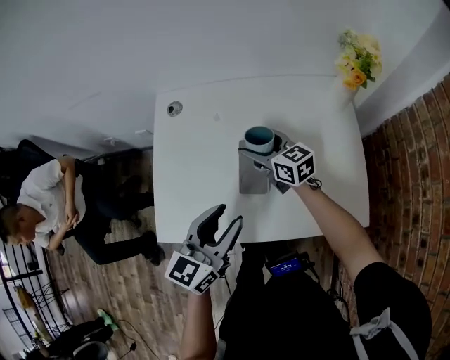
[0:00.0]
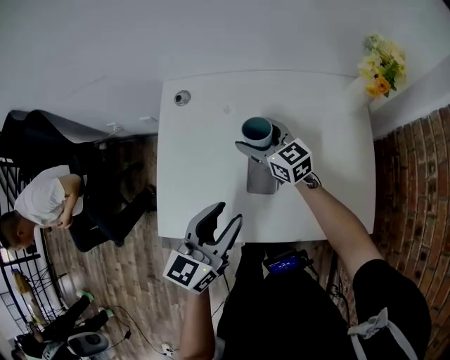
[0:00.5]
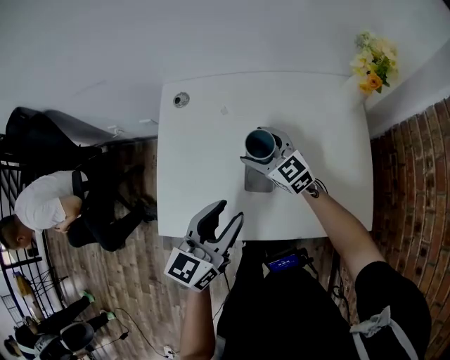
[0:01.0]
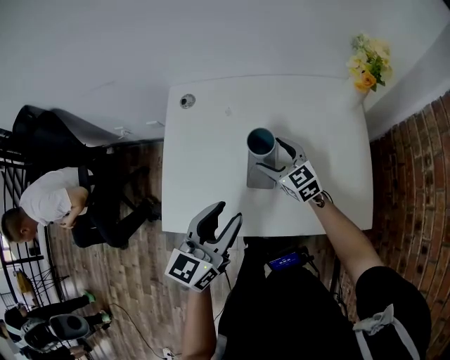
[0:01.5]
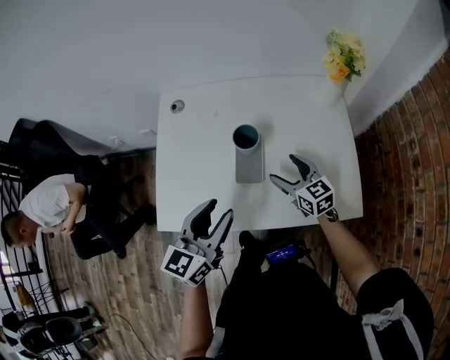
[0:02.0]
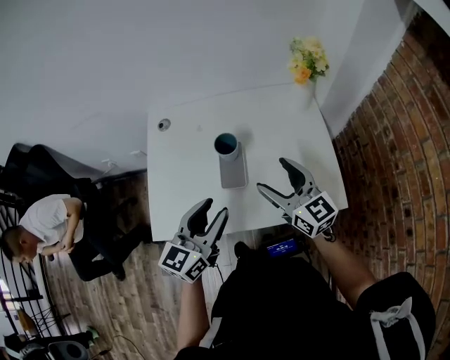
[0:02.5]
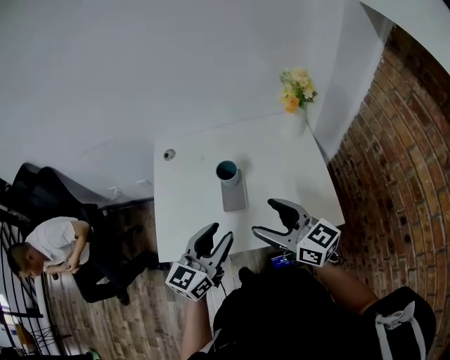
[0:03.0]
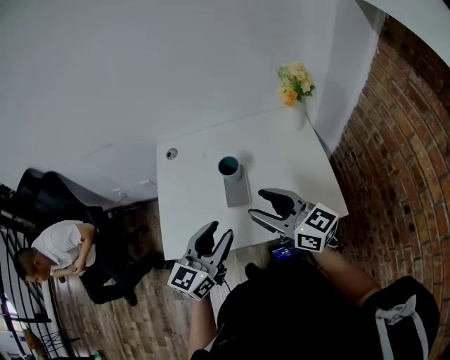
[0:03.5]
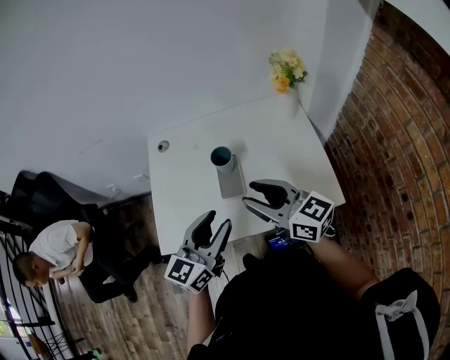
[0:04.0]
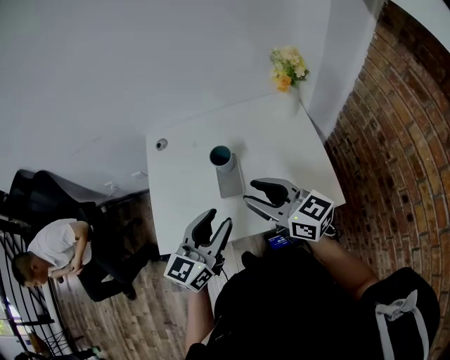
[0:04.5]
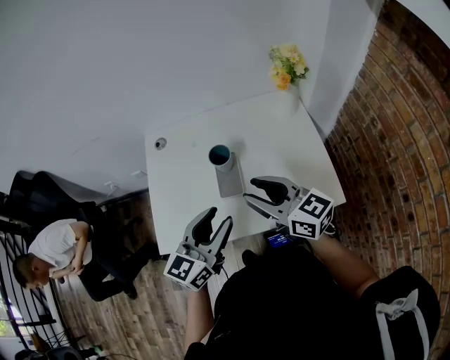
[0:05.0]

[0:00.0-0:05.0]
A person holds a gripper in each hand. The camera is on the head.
0:00.0 to 0:02.5: The right gripper travels backward, upward and to the right by roughly 25 cm, and rotates approximately 20 degrees, while the left gripper moves roughly 5 cm.
0:02.5 to 0:05.0: The right gripper heads upward, covering roughly 5 cm, and closes up.

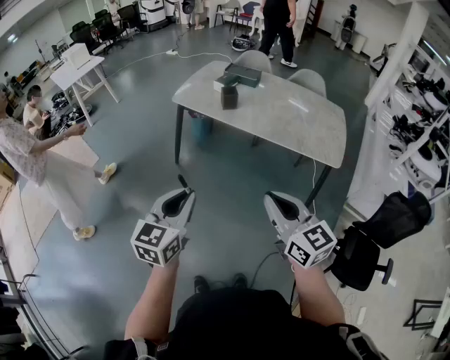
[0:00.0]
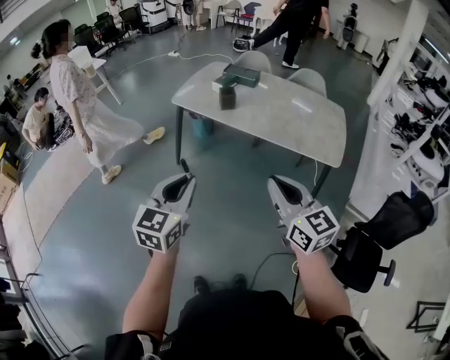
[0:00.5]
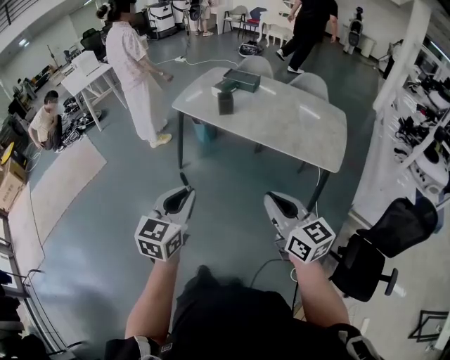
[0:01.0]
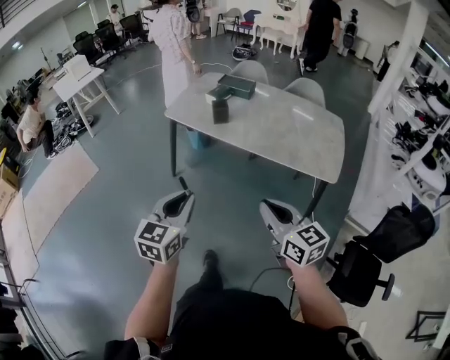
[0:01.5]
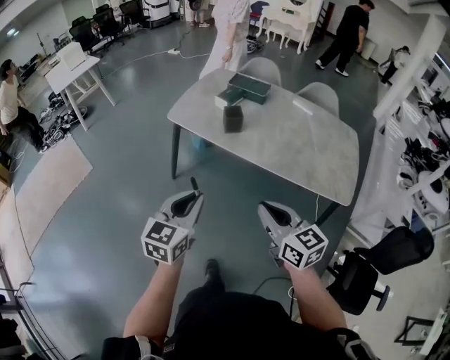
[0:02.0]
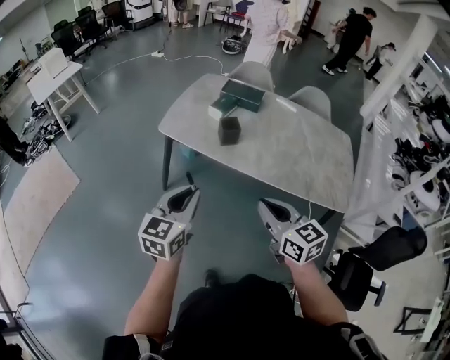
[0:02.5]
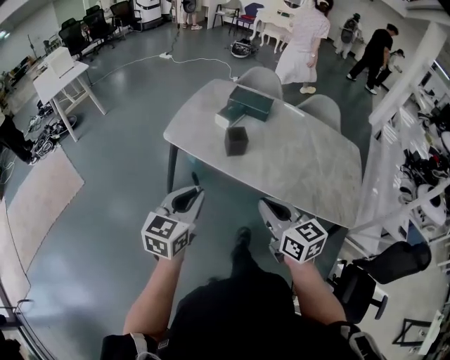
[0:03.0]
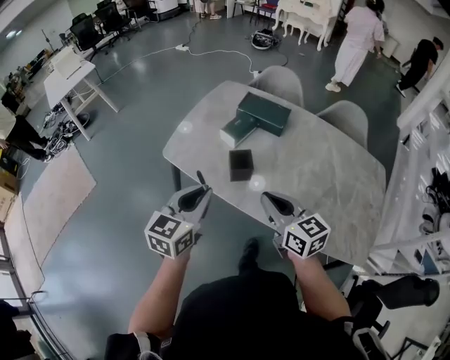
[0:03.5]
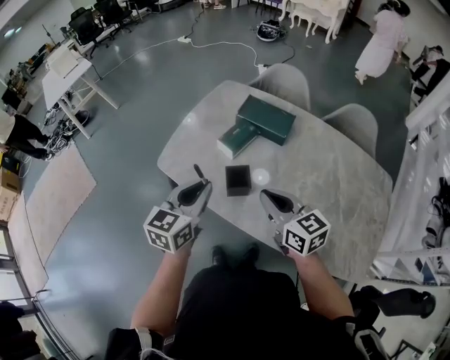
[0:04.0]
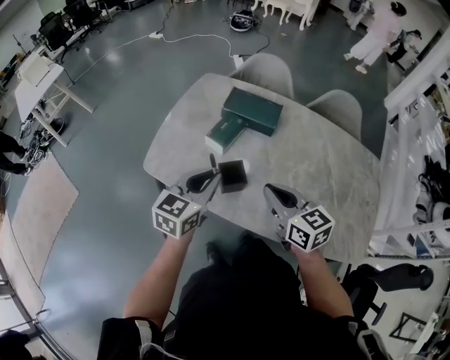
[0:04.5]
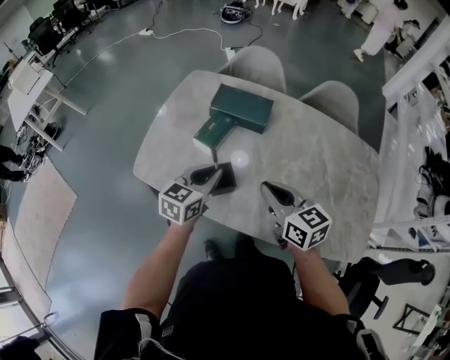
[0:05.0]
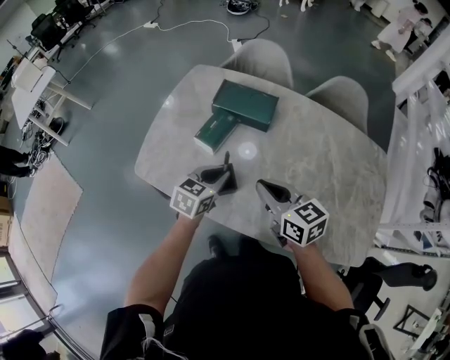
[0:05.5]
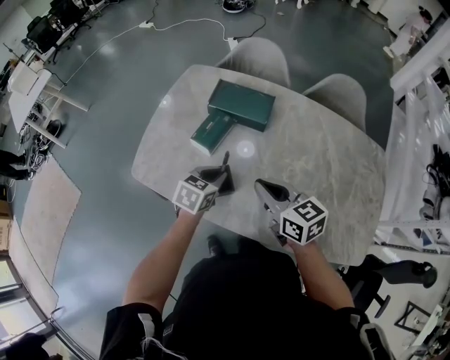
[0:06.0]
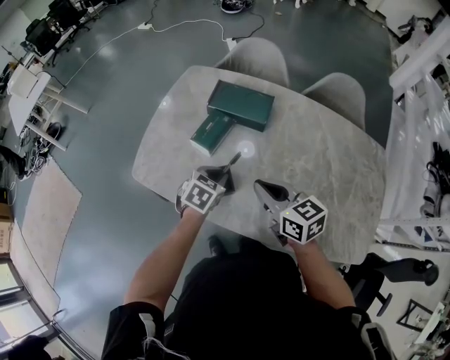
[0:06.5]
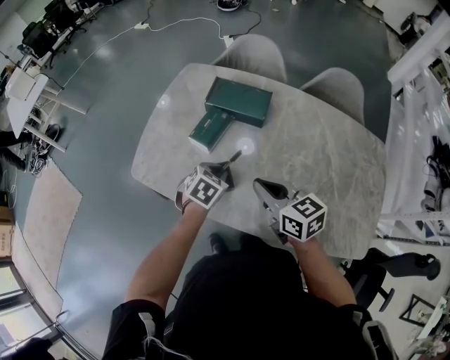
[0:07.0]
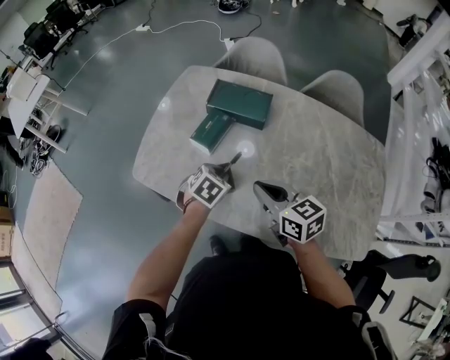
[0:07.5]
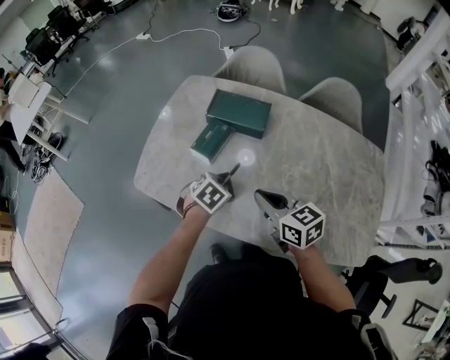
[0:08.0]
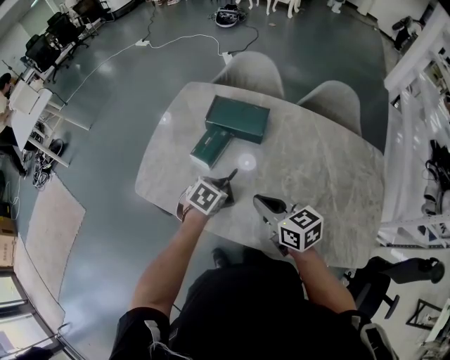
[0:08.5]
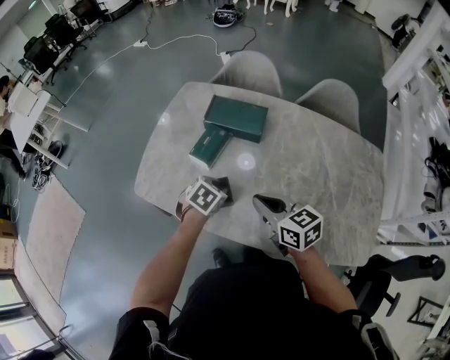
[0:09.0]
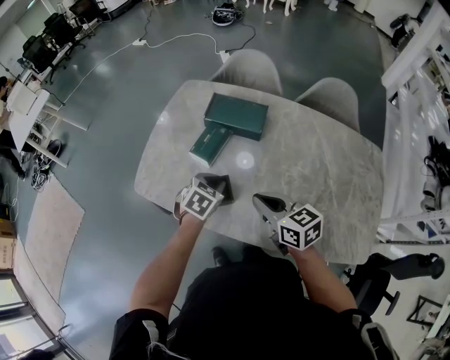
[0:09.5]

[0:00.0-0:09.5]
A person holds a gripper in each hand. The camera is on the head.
0:00.0 to 0:02.0: Both grippers move forward, about 25 cm.
0:02.0 to 0:04.0: The pair of grippers is taken forward, approximately 50 cm.
0:04.0 to 0:05.5: The right gripper heads forward, covering some 5 cm; the left gripper is displaced downward, forward and to the right by some 20 cm, and changes its angle by some 30 degrees.
0:05.5 to 0:07.5: The left gripper travels downward by approximately 5 cm, and changes its angle by about 30 degrees.
0:07.5 to 0:09.5: The grippers make only small movements.

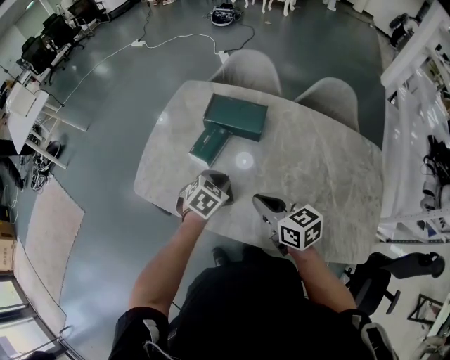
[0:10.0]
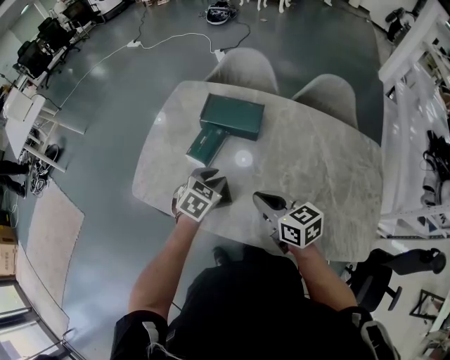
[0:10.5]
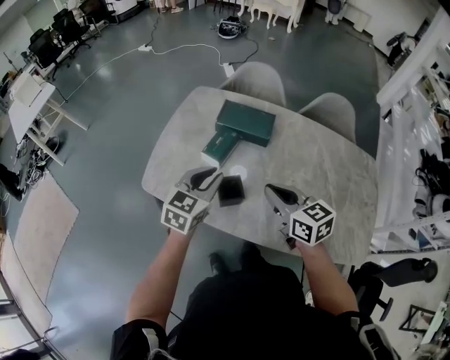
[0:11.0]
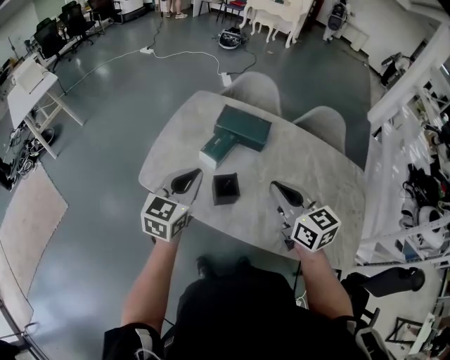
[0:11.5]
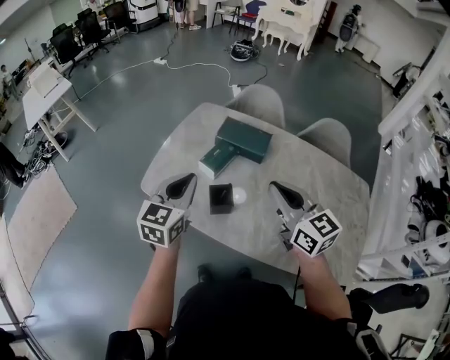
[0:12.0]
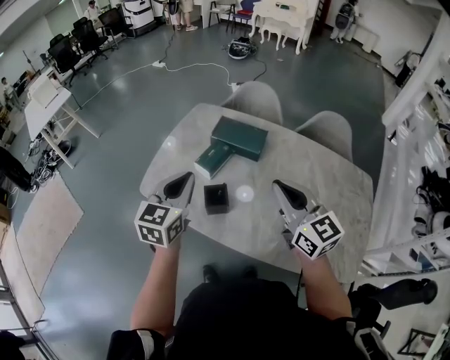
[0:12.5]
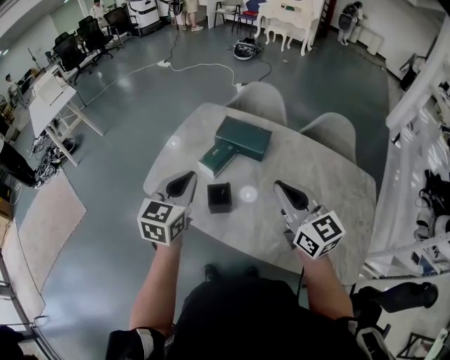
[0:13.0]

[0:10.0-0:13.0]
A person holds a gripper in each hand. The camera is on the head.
0:10.0 to 0:11.5: The right gripper goes roughly 10 cm upward. Meanwhile the left gripper moves upward, to the left and backward, some 25 cm, and points its fingers about 40 degrees further upward.
0:11.5 to 0:13.0: The left gripper changes place by about 5 cm; the right gripper shifts approximately 5 cm to the right.

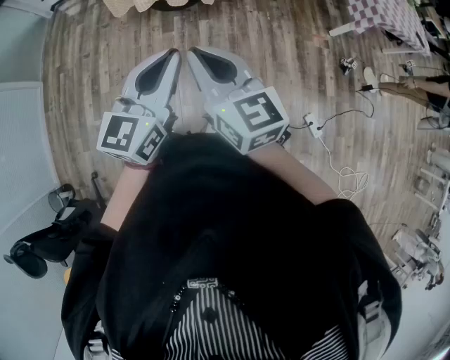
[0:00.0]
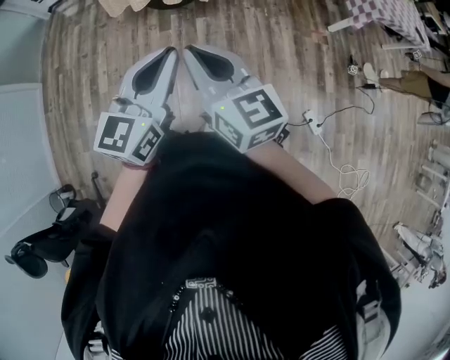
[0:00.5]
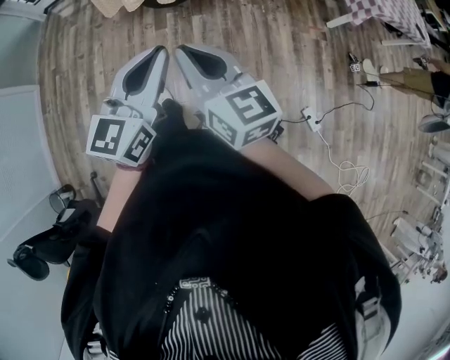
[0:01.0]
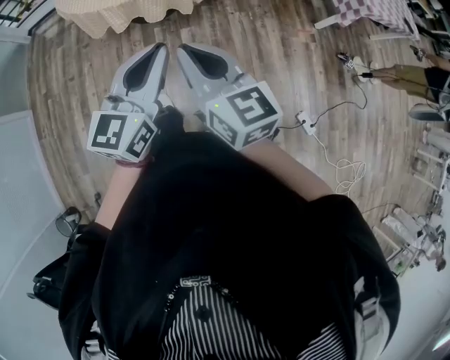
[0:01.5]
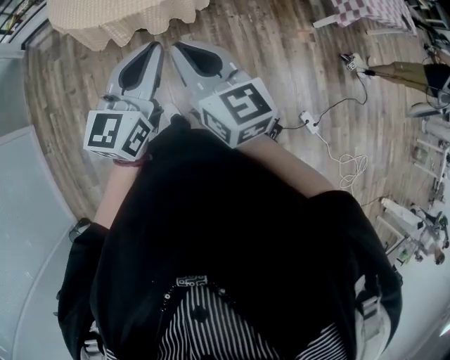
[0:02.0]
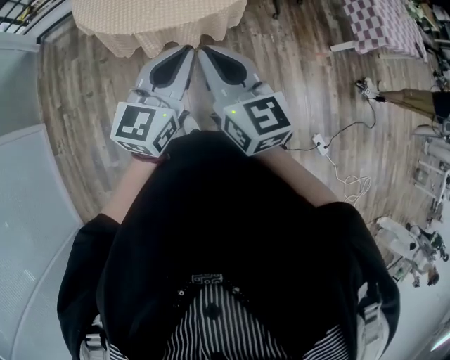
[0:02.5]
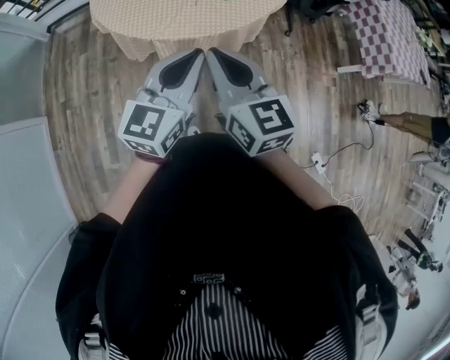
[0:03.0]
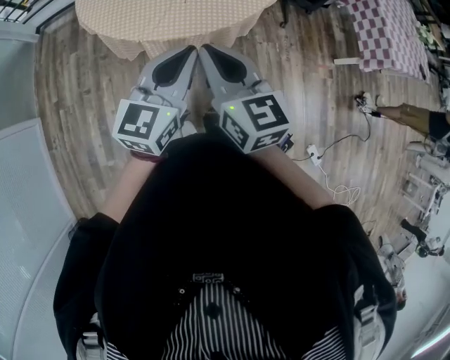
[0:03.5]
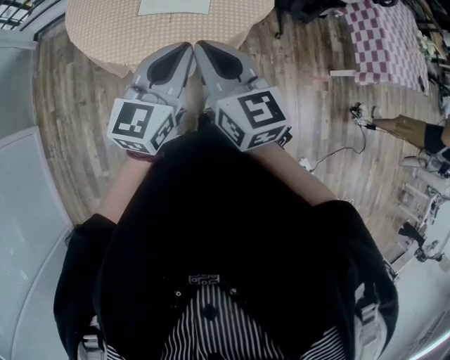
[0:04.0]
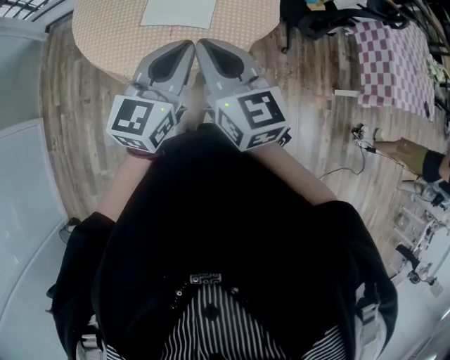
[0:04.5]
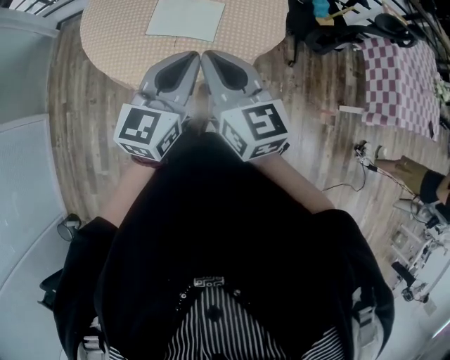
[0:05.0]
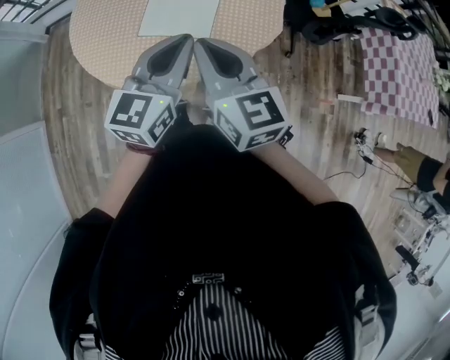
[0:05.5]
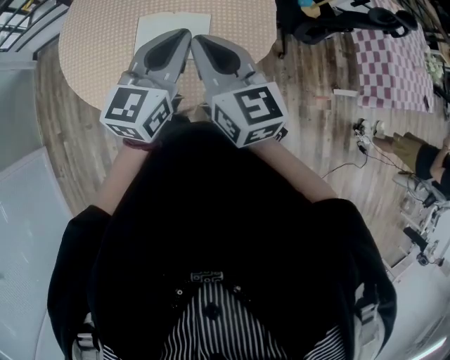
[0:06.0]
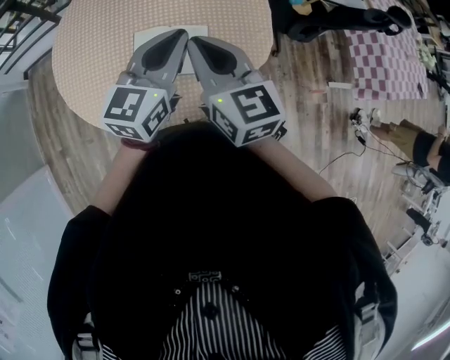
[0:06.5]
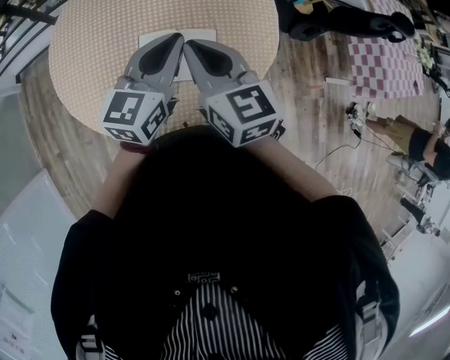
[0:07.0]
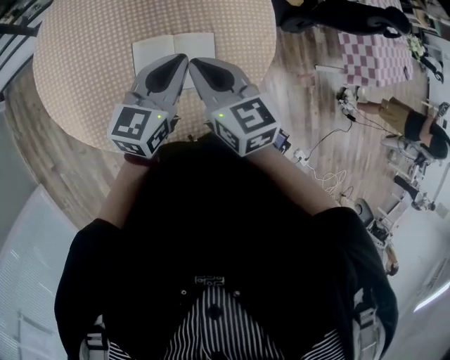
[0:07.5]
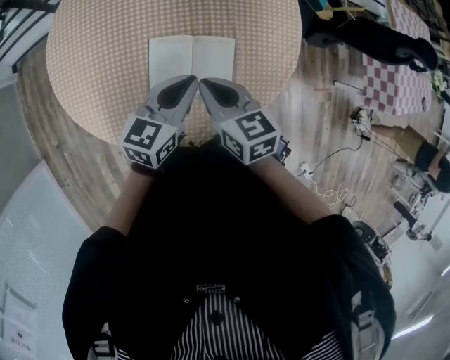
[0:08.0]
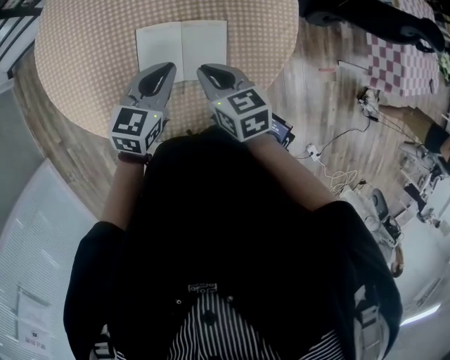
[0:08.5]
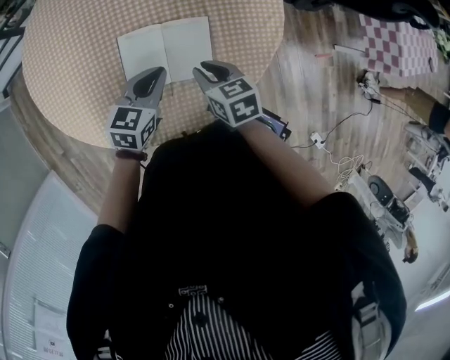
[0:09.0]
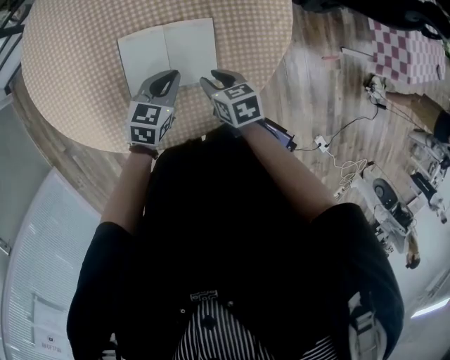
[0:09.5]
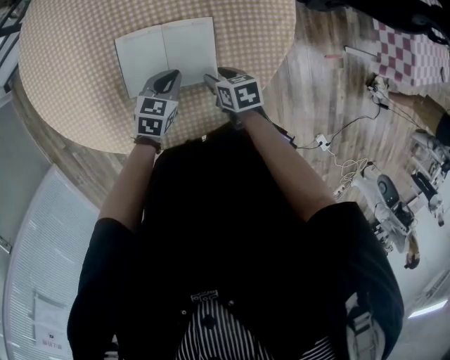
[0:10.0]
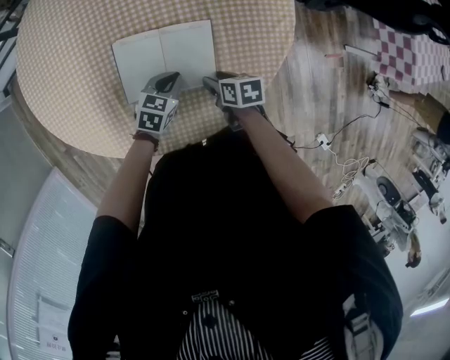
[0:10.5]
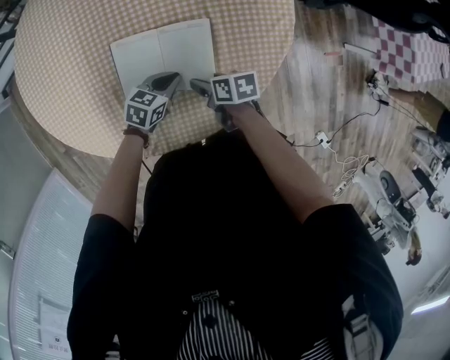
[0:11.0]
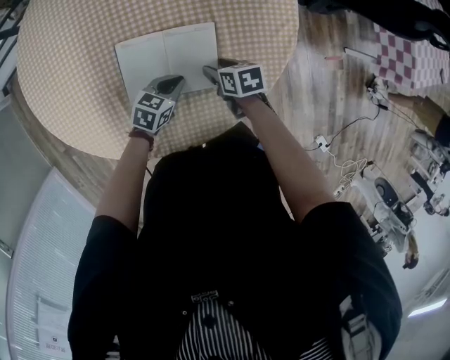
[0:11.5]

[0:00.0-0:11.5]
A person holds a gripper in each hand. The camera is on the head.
0:00.0 to 0:02.0: The grippers both shift forward by about 25 cm.
0:02.0 to 0:04.0: The grippers both shift forward by approximately 30 cm.
0:04.0 to 0:06.0: Both grippers move forward, some 25 cm.
0:06.0 to 0:07.5: The two grippers go about 20 cm forward, to the left and downward.
0:07.5 to 0:09.5: Both grippers move downward, roughly 25 cm. The right gripper changes its angle by some 30 degrees, and opens its fingers. The left gripper turns by some 30 degrees.
0:09.5 to 0:11.5: Both grippers travel together downward, some 10 cm. The right gripper opens its fingers.
